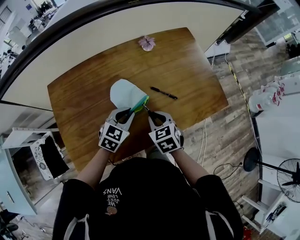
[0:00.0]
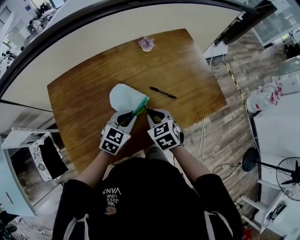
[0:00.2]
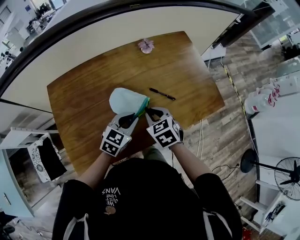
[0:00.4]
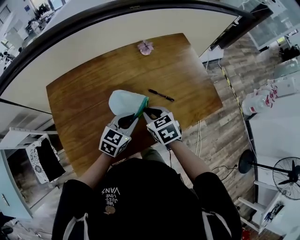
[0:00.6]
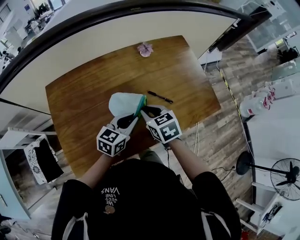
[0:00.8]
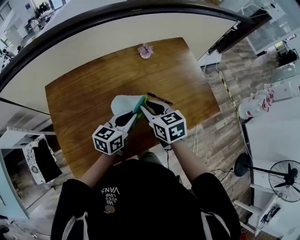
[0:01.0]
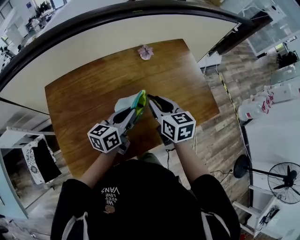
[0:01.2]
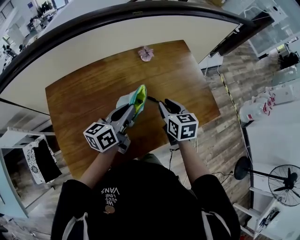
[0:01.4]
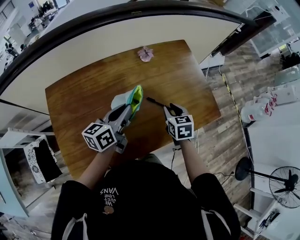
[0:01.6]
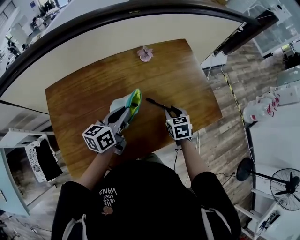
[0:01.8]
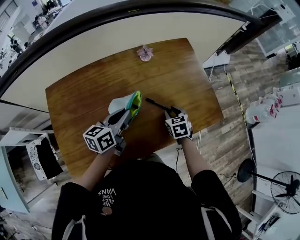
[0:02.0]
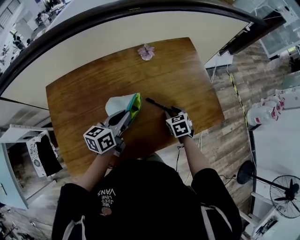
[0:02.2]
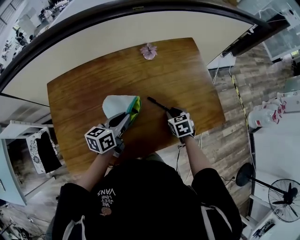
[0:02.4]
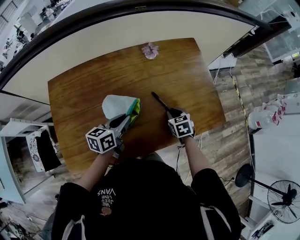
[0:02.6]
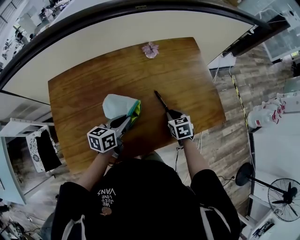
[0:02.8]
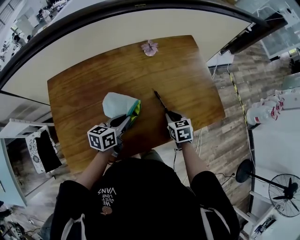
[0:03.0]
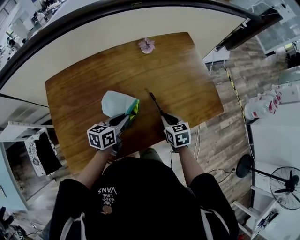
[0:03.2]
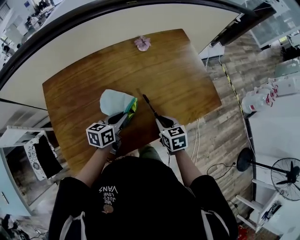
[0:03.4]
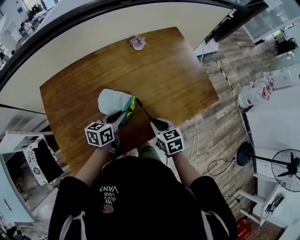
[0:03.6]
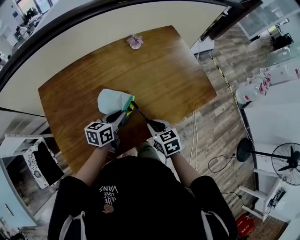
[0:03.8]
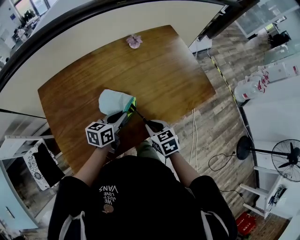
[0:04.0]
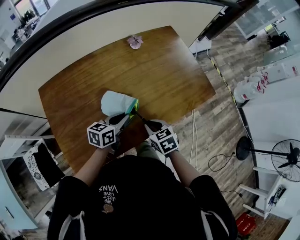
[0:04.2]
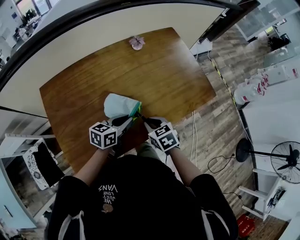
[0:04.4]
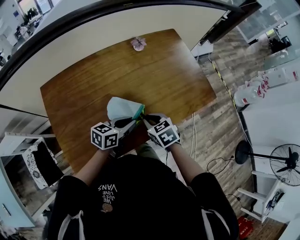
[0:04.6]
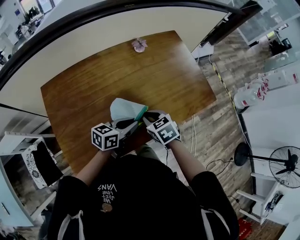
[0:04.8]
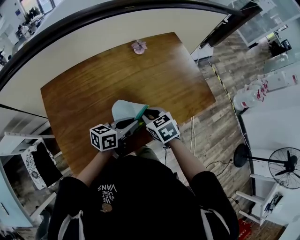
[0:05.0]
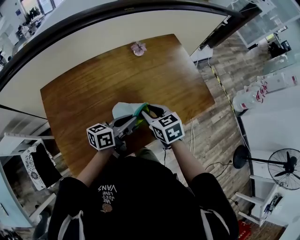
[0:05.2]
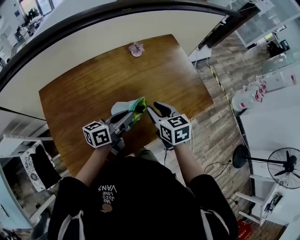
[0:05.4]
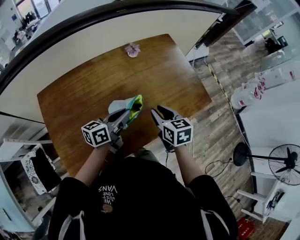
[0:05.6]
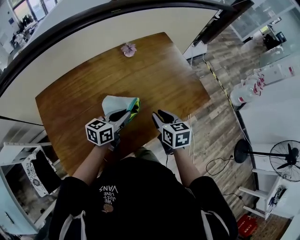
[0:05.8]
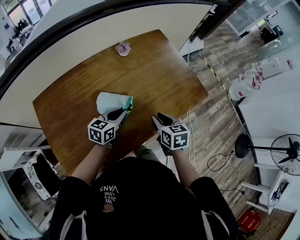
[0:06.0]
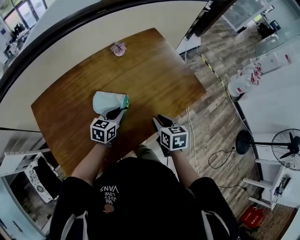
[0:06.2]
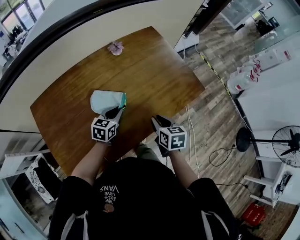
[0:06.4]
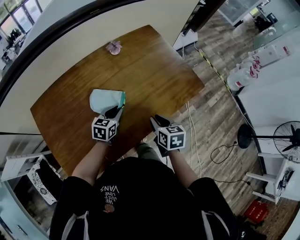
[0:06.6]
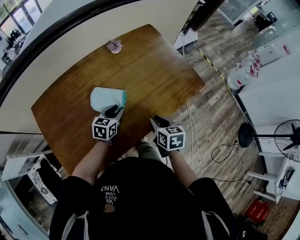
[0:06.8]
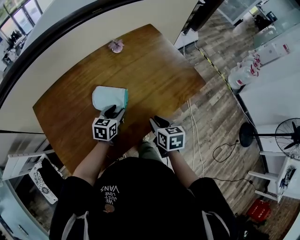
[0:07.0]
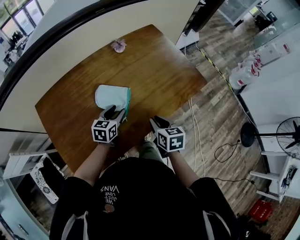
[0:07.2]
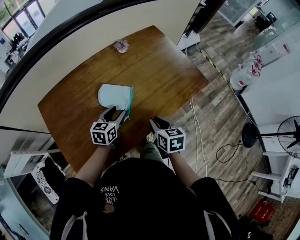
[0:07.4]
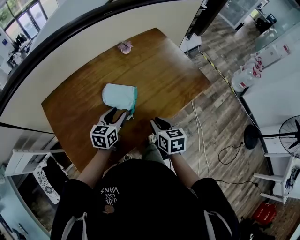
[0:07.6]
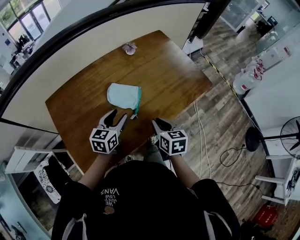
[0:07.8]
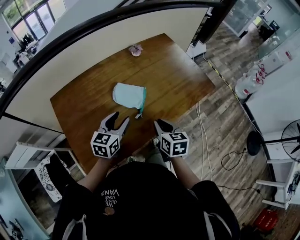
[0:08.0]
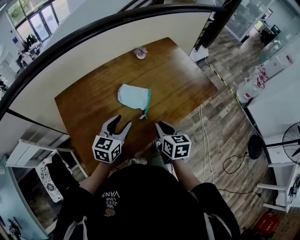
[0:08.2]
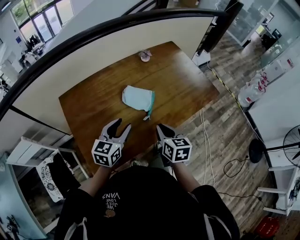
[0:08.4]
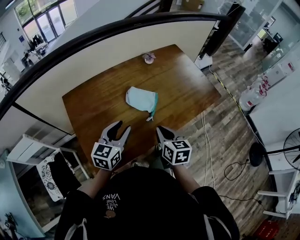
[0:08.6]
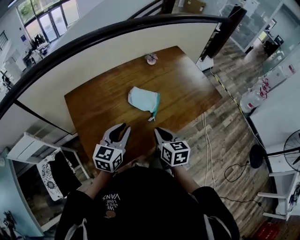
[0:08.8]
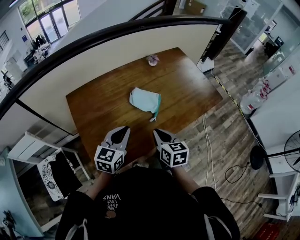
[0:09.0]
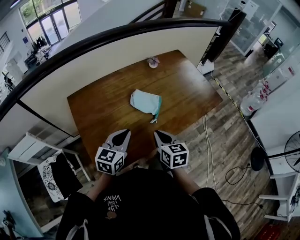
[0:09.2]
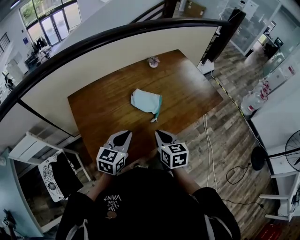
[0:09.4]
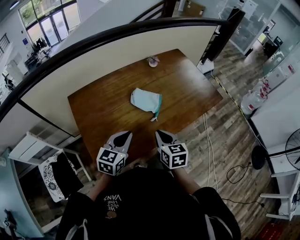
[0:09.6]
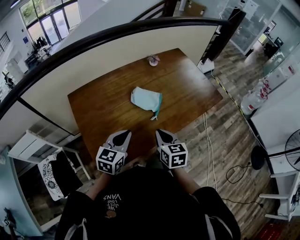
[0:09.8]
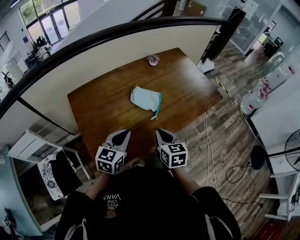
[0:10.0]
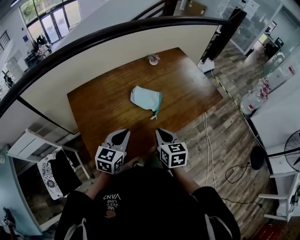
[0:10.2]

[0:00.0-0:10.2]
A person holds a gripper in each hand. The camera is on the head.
0:00.0 to 0:01.4: The right gripper shifts about 10 cm forward and upward, and changes its angle by approximately 20 degrees. The left gripper goes about 10 cm upward, and rotates around the line of its fingers by some 40 degrees, counterclockwise from behind.
0:01.4 to 0:03.0: The right gripper heads downward and to the right, covering approximately 15 cm. Meanwhile the left gripper heads downward, covering roughly 10 cm, and turns by roughly 20 degrees.
0:03.0 to 0:04.4: The right gripper moves backward and to the left, about 15 cm. The left gripper heads backward, covering approximately 5 cm.
0:04.4 to 0:05.8: The right gripper heads forward, to the right and upward, covering about 10 cm, and swivels about 20 degrees. The left gripper is displaced forward by some 5 cm.
0:05.8 to 0:07.2: The left gripper goes approximately 5 cm downward, rotates some 20 degrees, and opens its fingers, while the right gripper shifts some 5 cm backward.
0:07.2 to 0:08.8: The left gripper is displaced backward, upward and to the left by approximately 25 cm, and closes; the right gripper shifts approximately 15 cm to the left, backward and upward.
0:08.8 to 0:10.2: The grippers make only small movements.

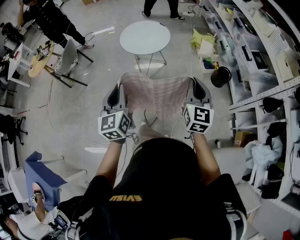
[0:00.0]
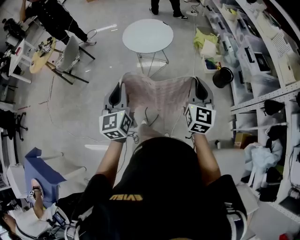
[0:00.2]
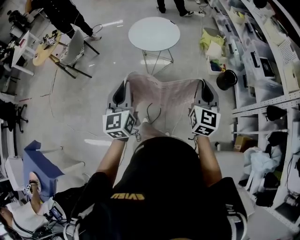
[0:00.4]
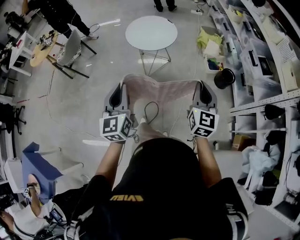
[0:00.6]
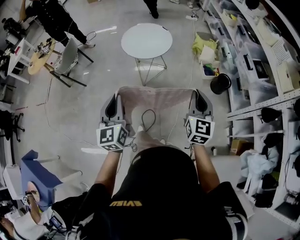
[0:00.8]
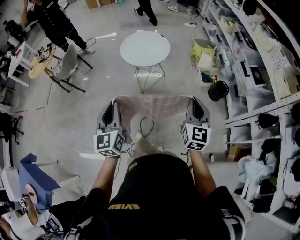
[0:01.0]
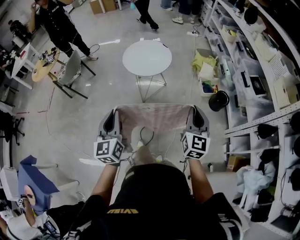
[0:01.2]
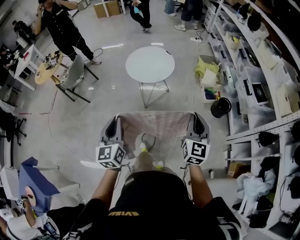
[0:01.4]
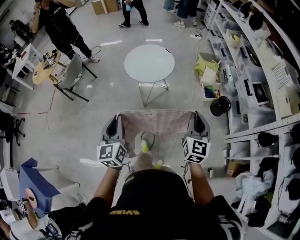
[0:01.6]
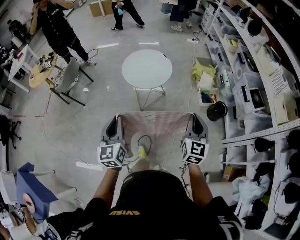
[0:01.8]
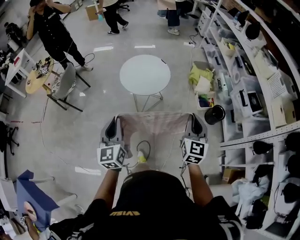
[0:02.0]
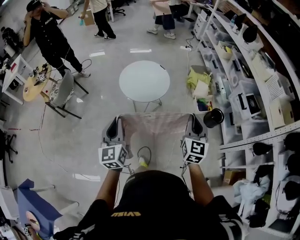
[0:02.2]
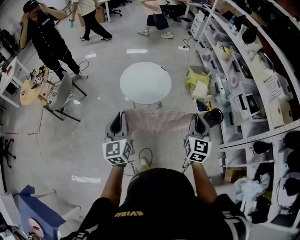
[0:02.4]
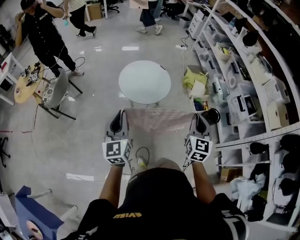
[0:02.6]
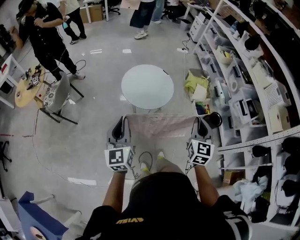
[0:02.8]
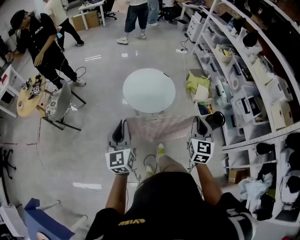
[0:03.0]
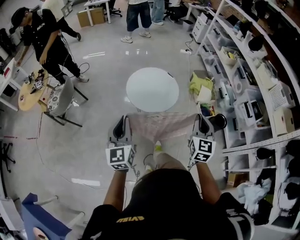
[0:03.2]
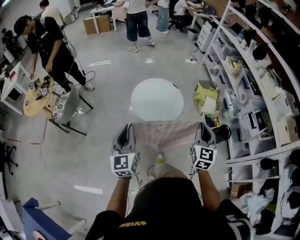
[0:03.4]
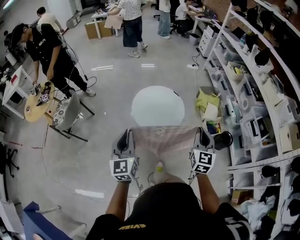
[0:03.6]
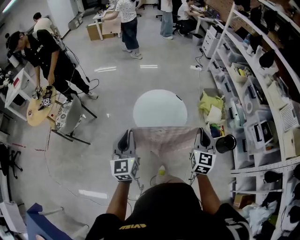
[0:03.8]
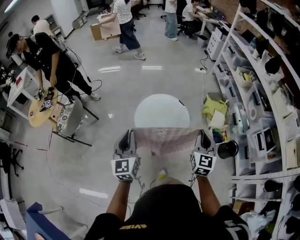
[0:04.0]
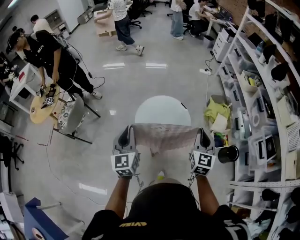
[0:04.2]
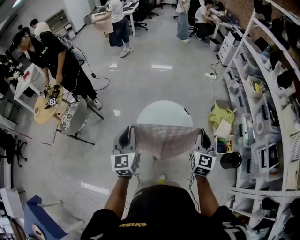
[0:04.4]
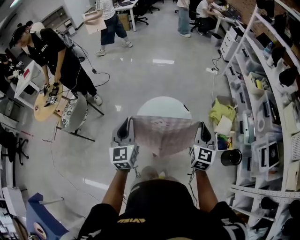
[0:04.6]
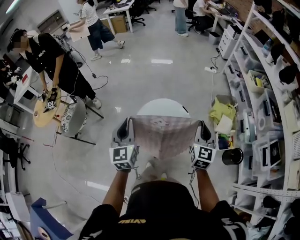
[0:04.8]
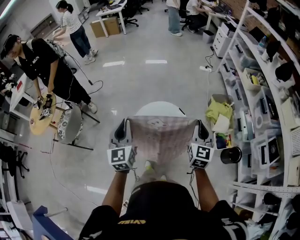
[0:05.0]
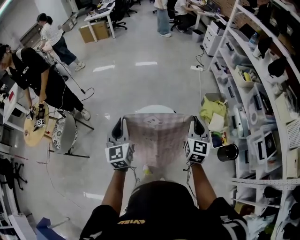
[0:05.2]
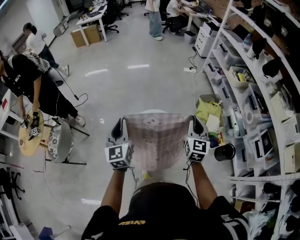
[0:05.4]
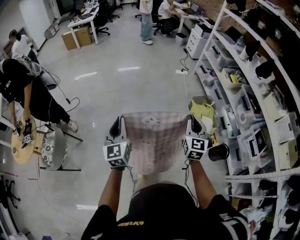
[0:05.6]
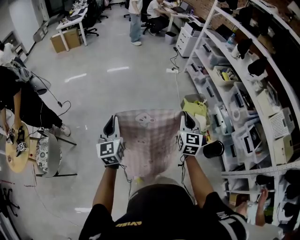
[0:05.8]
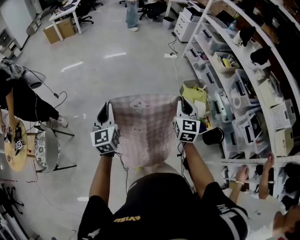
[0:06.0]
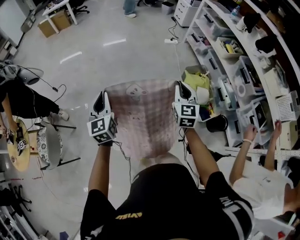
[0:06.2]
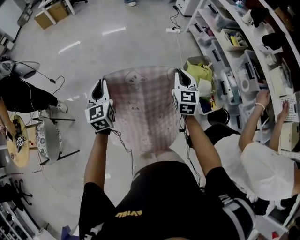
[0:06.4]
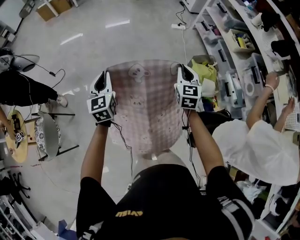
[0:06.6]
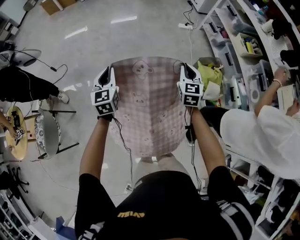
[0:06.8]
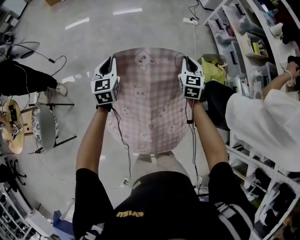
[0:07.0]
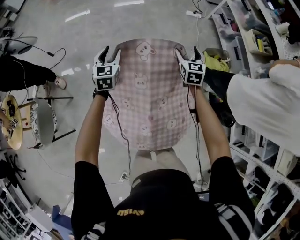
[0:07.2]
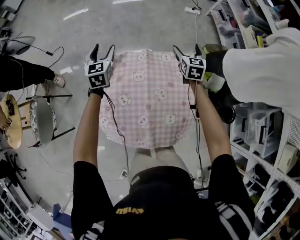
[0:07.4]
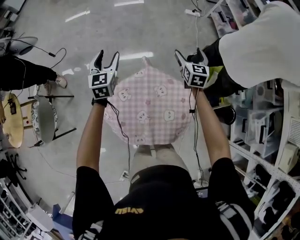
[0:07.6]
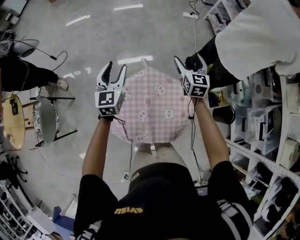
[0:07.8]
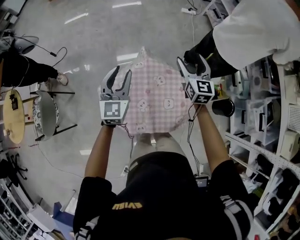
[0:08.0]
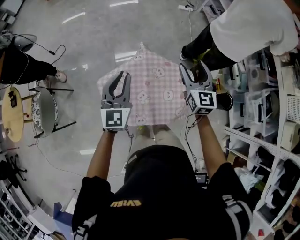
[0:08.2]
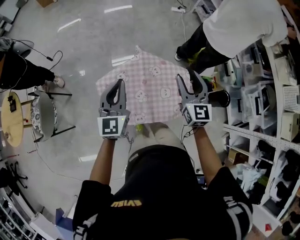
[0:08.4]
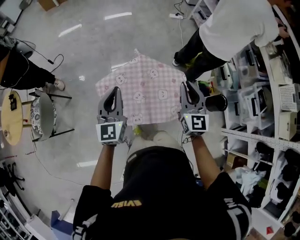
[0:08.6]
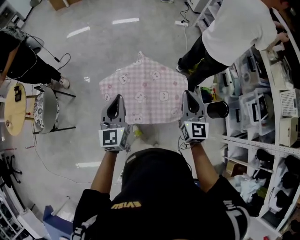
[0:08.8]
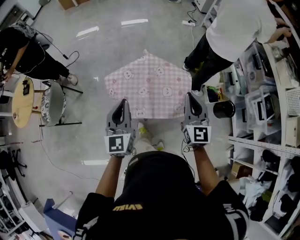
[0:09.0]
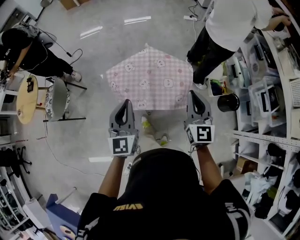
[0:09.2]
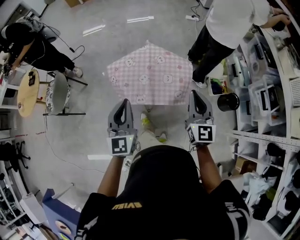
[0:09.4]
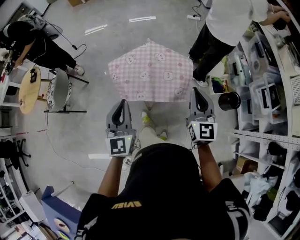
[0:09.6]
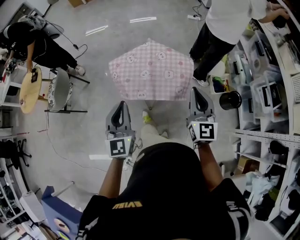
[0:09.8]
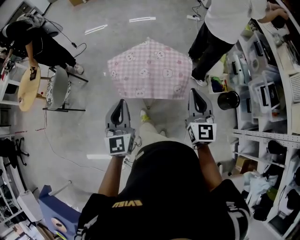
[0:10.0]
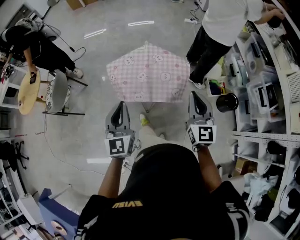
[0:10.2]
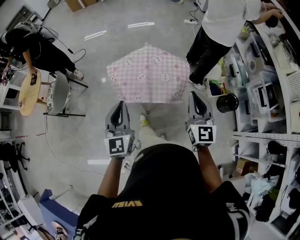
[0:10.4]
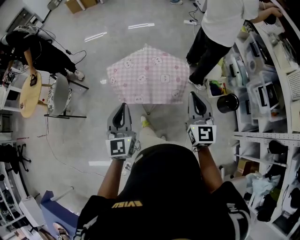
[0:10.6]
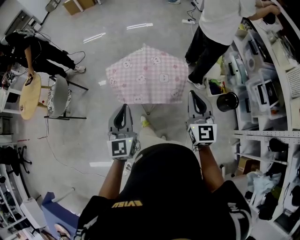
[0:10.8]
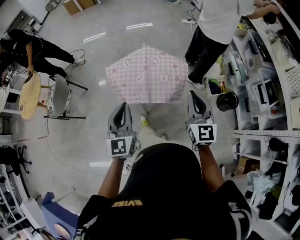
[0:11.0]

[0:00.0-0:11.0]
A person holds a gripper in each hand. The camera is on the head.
0:00.0 to 0:01.6: The two grippers go some 5 cm forward.
0:01.6 to 0:03.2: Both grippers travel together forward and to the left, roughly 30 cm.
0:03.2 to 0:04.8: The two grippers go about 35 cm forward.
0:04.8 to 0:06.2: The grippers both shift forward by some 25 cm.
0:06.2 to 0:07.8: The left gripper moves downward and forward, roughly 15 cm, and opens. Meanwhile the right gripper goes some 20 cm forward and downward, and opens.
0:07.8 to 0:09.4: Both grippers are carried backward, about 50 cm. The right gripper closes its fingers. The left gripper closes its fingers.
0:09.4 to 0:11.0: Both grippers move backward, some 5 cm.

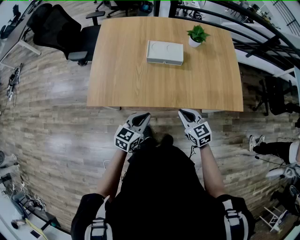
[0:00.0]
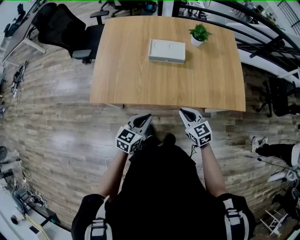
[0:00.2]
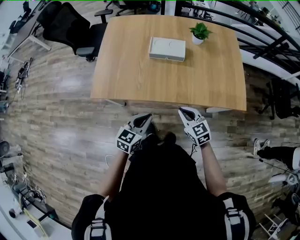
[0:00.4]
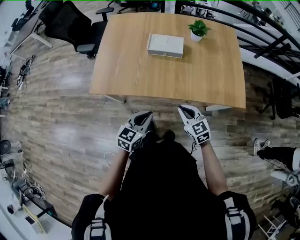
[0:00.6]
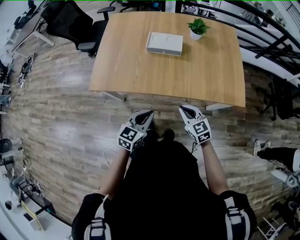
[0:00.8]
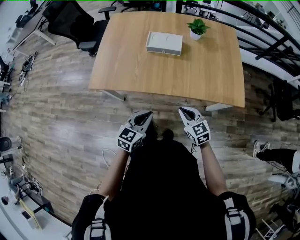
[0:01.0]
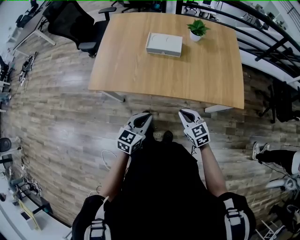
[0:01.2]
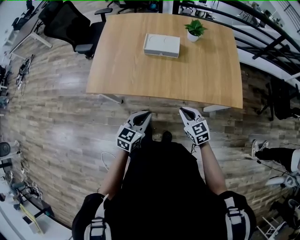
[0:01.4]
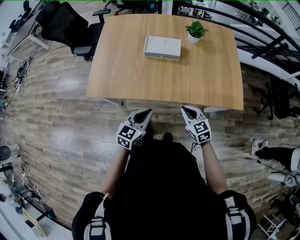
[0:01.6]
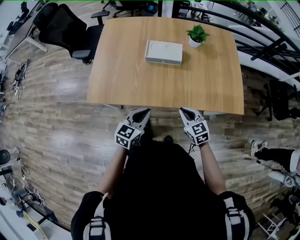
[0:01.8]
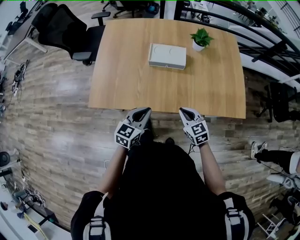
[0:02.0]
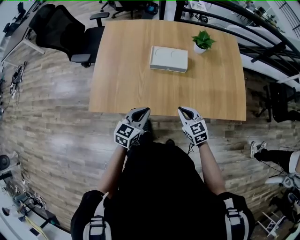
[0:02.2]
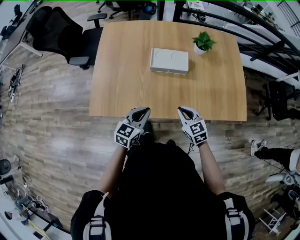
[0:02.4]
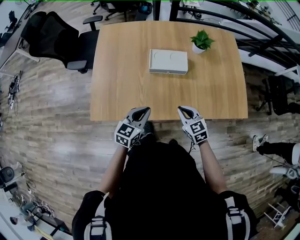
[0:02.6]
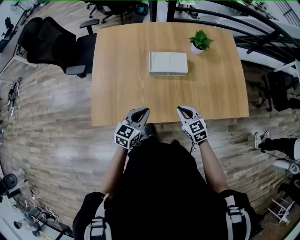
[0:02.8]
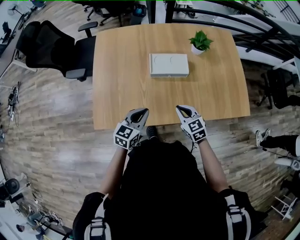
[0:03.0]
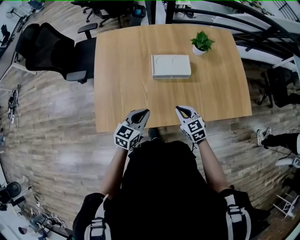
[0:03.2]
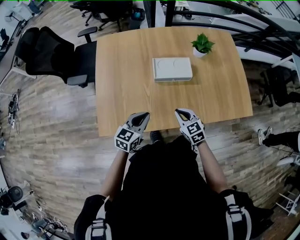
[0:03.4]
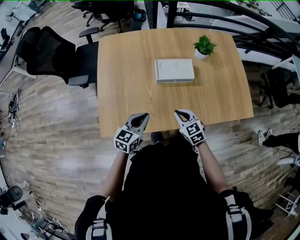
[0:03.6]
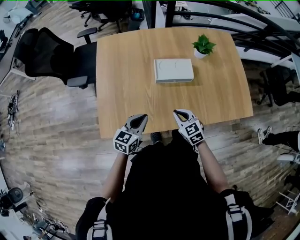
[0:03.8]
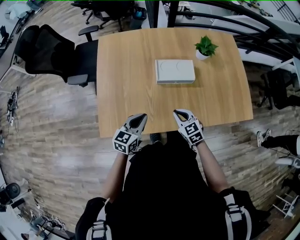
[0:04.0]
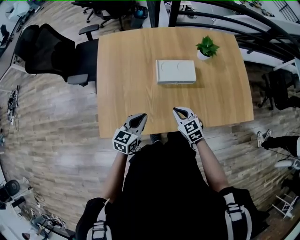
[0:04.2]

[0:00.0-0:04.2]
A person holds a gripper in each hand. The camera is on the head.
0:00.0 to 0:01.4: Both grippers move to the right and backward, some 10 cm.
0:01.4 to 0:02.8: Both grippers travel together forward and to the left, some 20 cm.
0:02.8 to 0:04.2: The right gripper goes about 10 cm to the left and forward; the left gripper shifts roughly 10 cm to the left.
